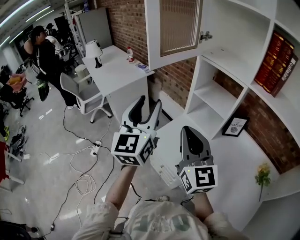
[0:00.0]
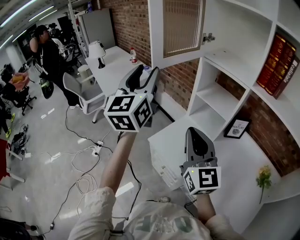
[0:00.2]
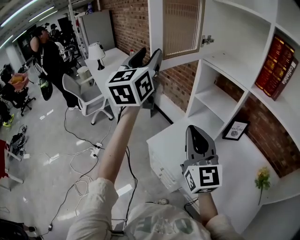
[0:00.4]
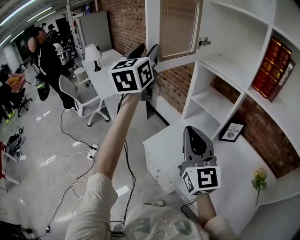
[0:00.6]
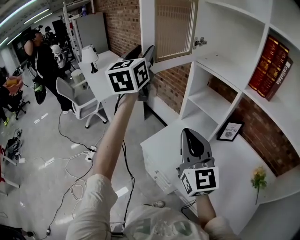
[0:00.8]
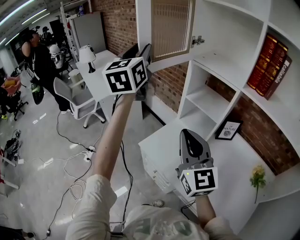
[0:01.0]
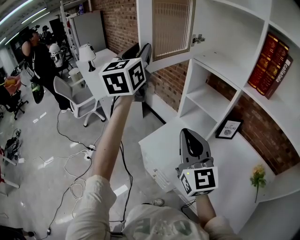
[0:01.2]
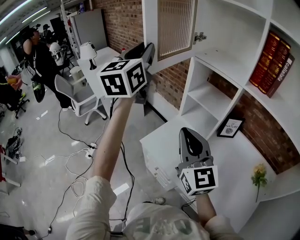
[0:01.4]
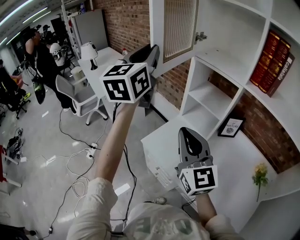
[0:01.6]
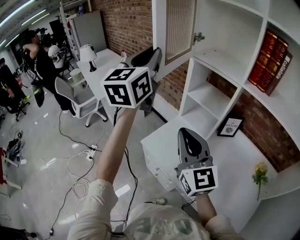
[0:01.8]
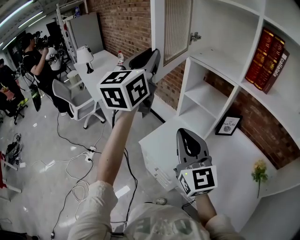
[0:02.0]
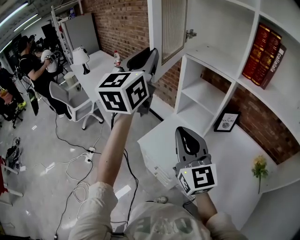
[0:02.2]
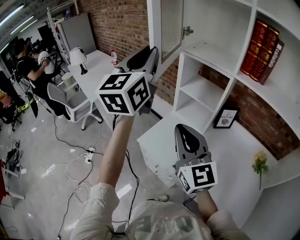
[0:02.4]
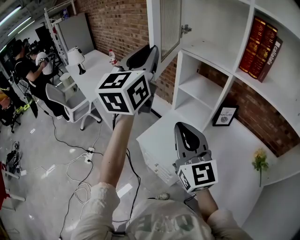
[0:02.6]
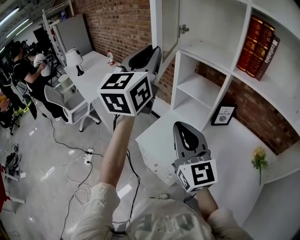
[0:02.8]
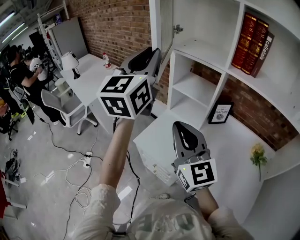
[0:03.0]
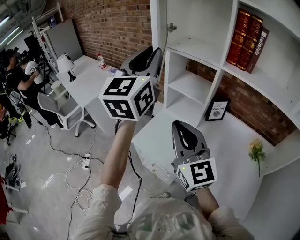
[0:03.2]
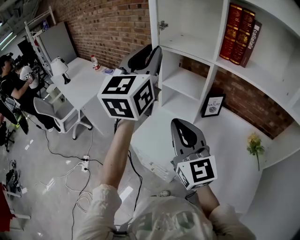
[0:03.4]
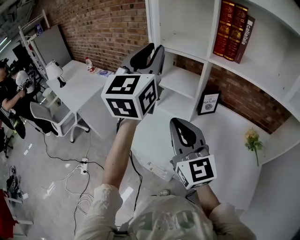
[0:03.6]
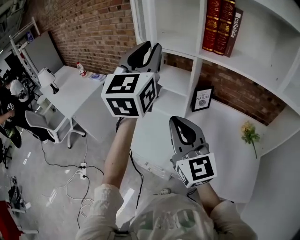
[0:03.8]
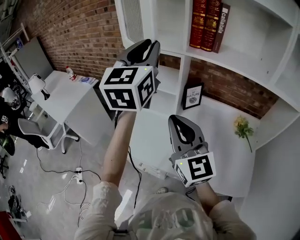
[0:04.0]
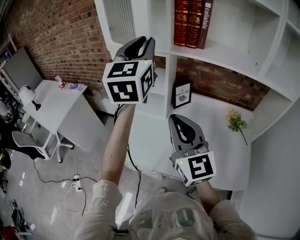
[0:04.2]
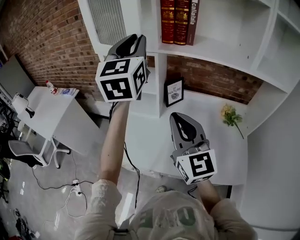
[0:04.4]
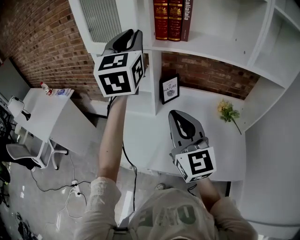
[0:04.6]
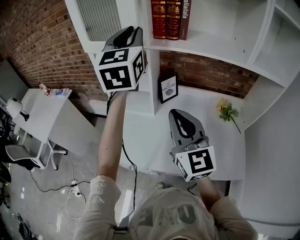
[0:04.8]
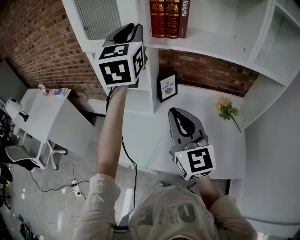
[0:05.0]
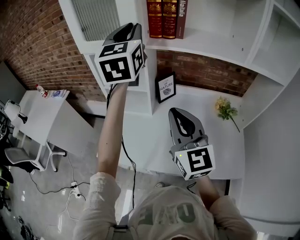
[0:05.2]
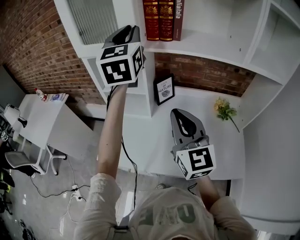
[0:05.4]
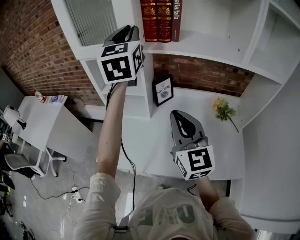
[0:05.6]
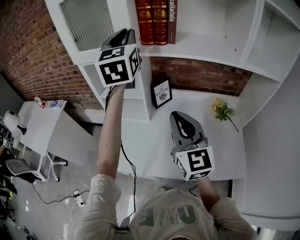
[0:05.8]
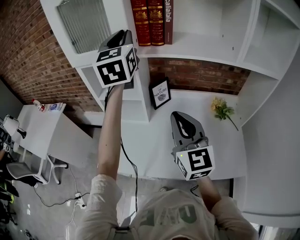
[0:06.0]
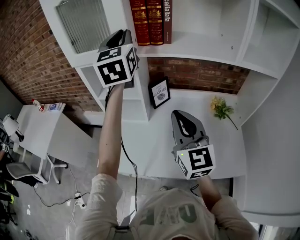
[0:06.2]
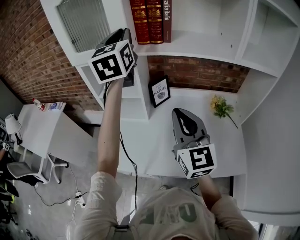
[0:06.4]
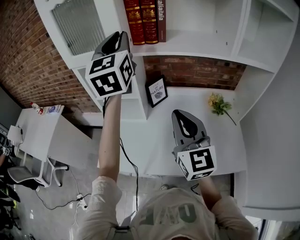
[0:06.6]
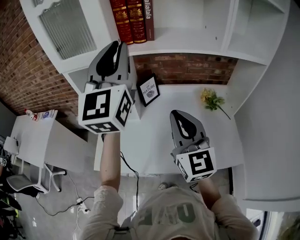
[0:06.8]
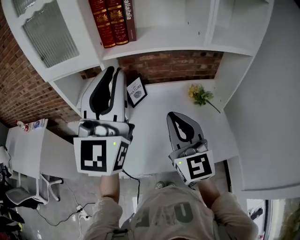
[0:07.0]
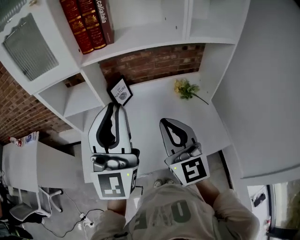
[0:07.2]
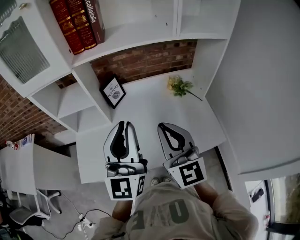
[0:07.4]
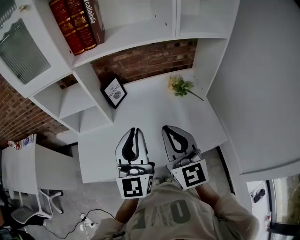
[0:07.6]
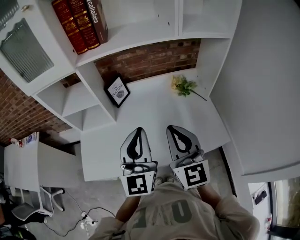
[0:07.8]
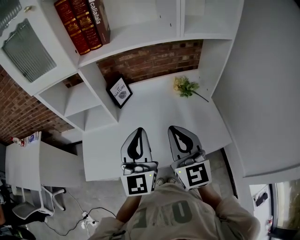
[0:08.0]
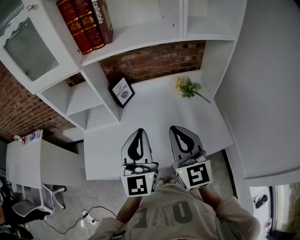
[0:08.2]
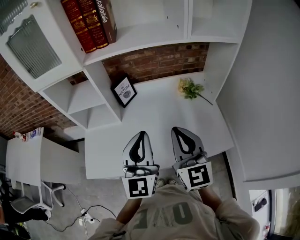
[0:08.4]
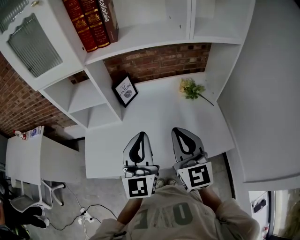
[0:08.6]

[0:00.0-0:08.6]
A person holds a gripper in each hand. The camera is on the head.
0:00.0 to 0:01.4: The left gripper heads upward and forward, covering roughly 20 cm.
0:01.4 to 0:02.8: The left gripper goes some 10 cm to the right and backward.
0:02.8 to 0:04.4: Both grippers move to the right, some 20 cm. The right gripper turns by some 30 degrees.
0:04.4 to 0:05.8: The left gripper travels forward by about 10 cm. The right gripper ends up some 5 cm from where it was.
0:05.8 to 0:07.2: The left gripper heads backward, covering roughly 25 cm, and swivels about 30 degrees. Meanwhile the right gripper travels to the right and backward by some 10 cm.
0:07.2 to 0:08.6: The right gripper travels downward by approximately 5 cm; the left gripper shifts about 15 cm downward.

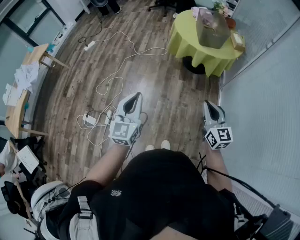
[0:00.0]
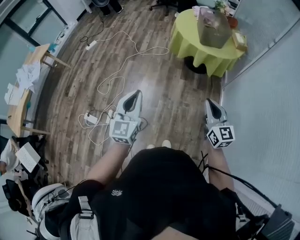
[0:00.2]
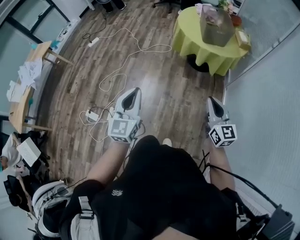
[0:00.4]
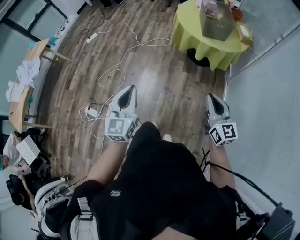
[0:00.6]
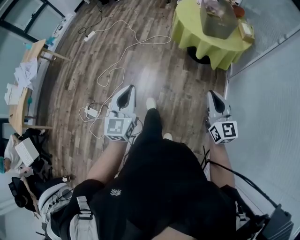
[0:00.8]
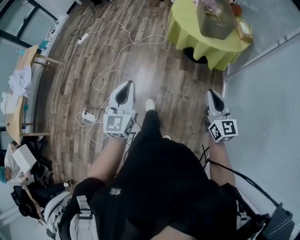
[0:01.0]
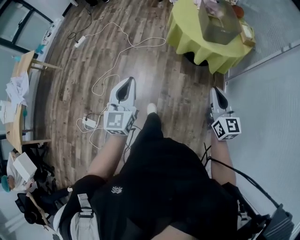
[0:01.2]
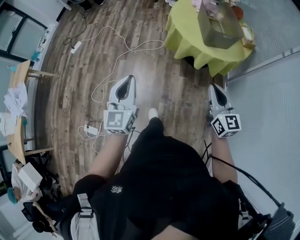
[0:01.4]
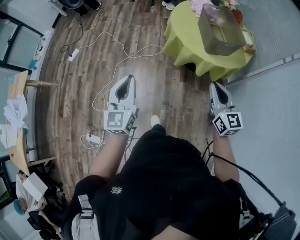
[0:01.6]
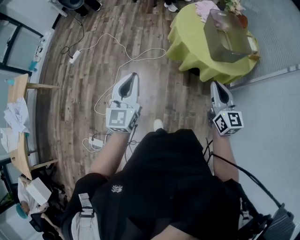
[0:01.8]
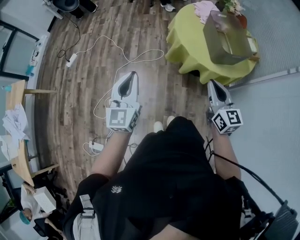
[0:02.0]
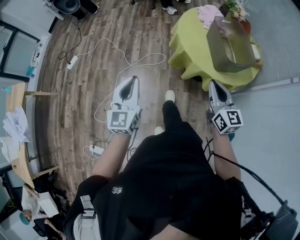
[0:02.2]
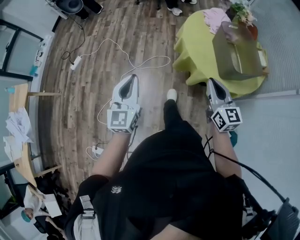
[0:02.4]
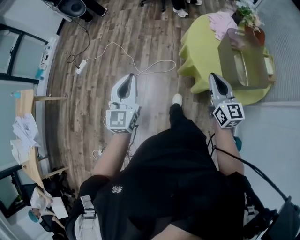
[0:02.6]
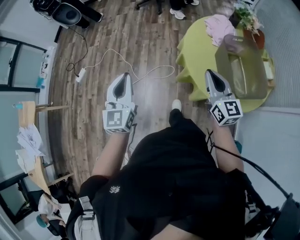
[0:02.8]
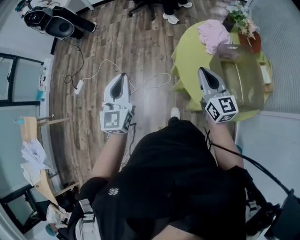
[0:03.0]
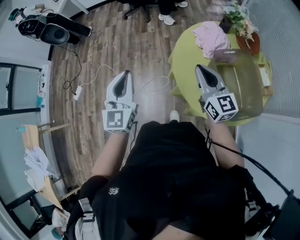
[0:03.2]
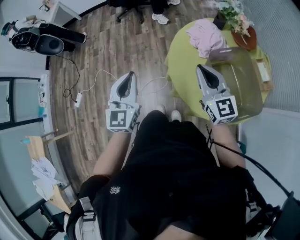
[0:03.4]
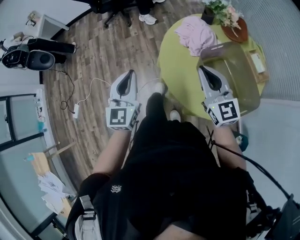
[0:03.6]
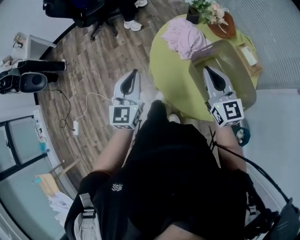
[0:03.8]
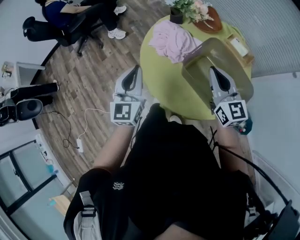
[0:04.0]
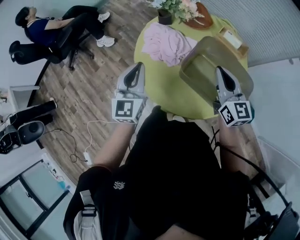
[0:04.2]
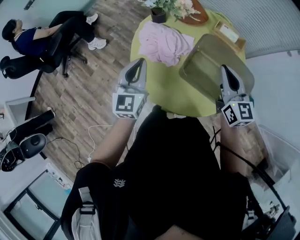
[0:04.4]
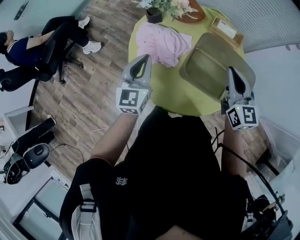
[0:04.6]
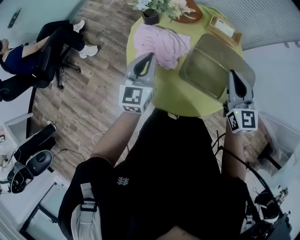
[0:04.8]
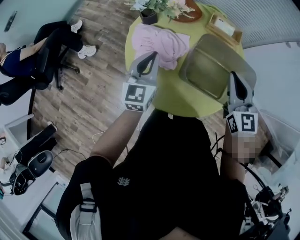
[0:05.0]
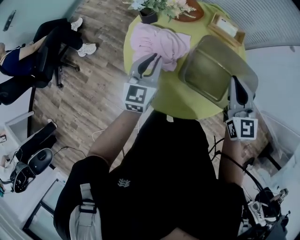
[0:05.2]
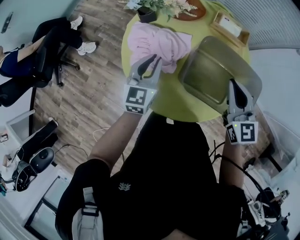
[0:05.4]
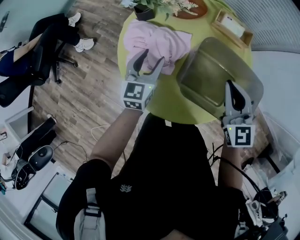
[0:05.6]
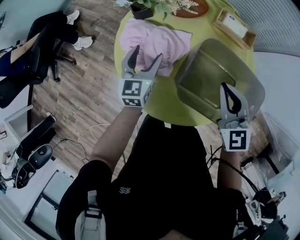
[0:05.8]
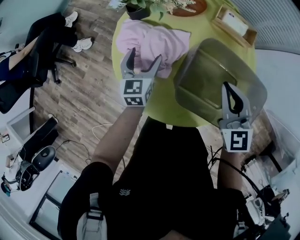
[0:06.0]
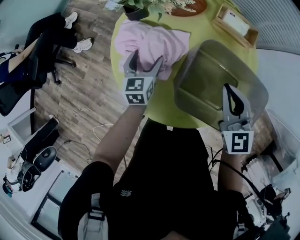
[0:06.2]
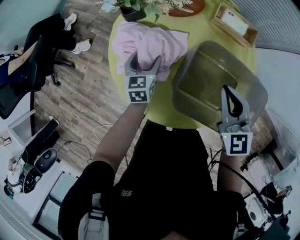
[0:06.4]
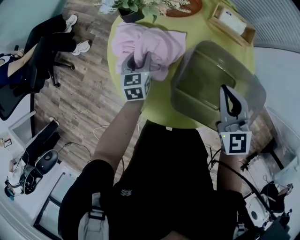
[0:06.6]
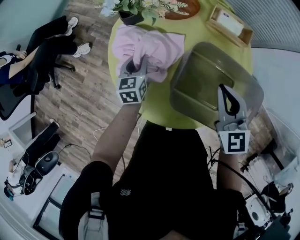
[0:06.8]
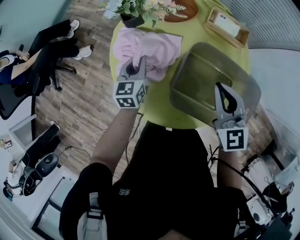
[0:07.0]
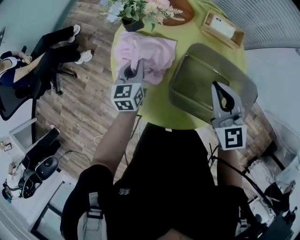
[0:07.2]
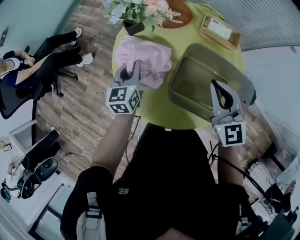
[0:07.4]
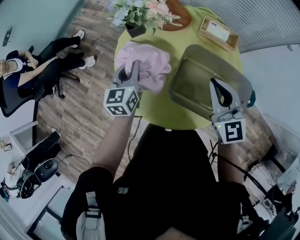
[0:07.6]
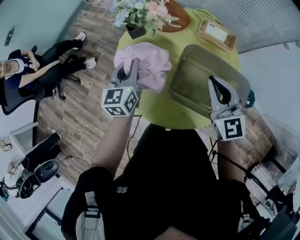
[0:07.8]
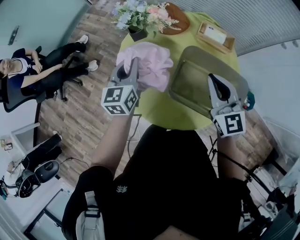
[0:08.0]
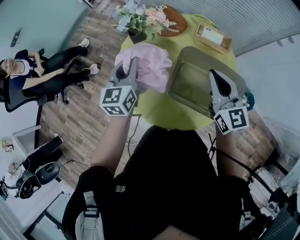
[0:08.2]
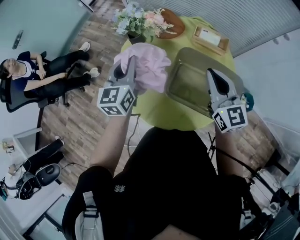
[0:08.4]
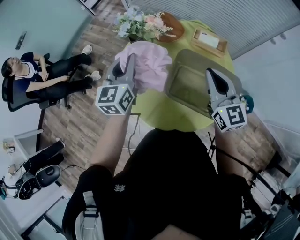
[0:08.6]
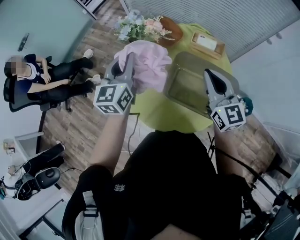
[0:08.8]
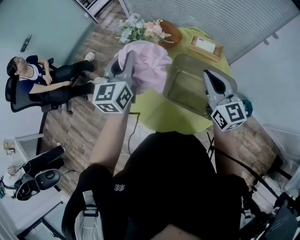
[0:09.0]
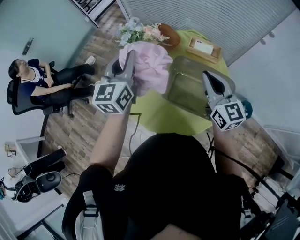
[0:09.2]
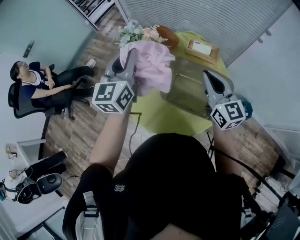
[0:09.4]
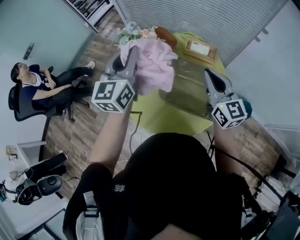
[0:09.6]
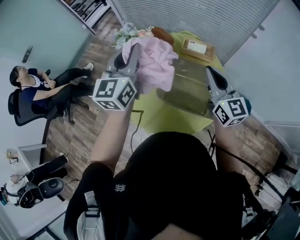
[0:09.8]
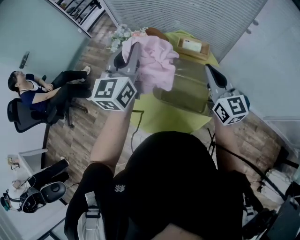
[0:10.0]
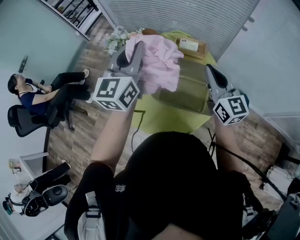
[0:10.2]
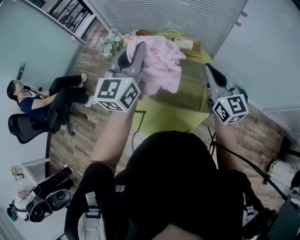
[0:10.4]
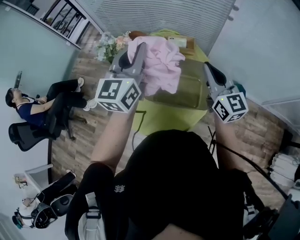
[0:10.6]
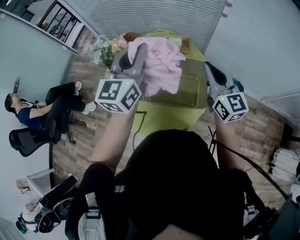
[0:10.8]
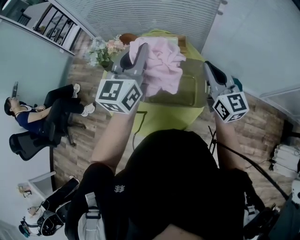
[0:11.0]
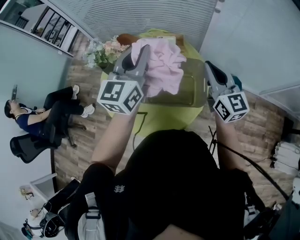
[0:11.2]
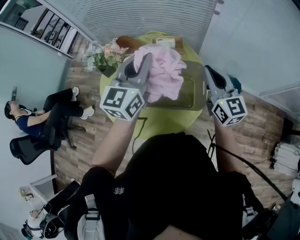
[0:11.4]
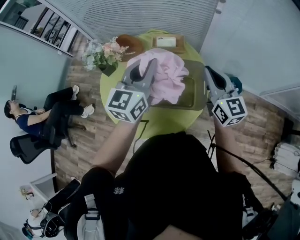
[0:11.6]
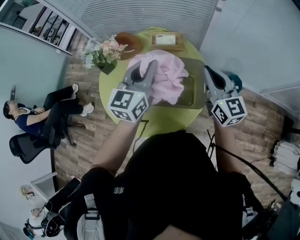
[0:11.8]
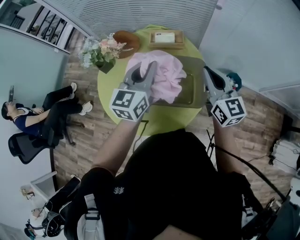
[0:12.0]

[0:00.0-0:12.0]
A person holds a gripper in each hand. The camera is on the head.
0:00.0 to 0:01.6: The grippers both shift forward by approximately 40 cm.
0:01.6 to 0:03.0: Both grippers are carried forward, roughly 50 cm.
0:03.0 to 0:04.4: The right gripper changes place by approximately 30 cm, and swivels some 50 degrees. Meanwhile the left gripper changes place by about 50 cm, and turns by approximately 60 degrees.
0:04.4 to 0:06.0: The right gripper shifts about 10 cm downward and forward; the left gripper heads downward and forward, covering approximately 25 cm, changes its angle by approximately 20 degrees, and opens its fingers.
0:06.0 to 0:07.6: The left gripper goes approximately 10 cm upward, and closes; the right gripper moves upward, approximately 5 cm.
0:07.6 to 0:09.0: The left gripper shifts some 20 cm upward. The right gripper travels upward by roughly 10 cm.
0:09.0 to 0:10.4: The left gripper heads to the right and upward, covering about 15 cm; the right gripper travels to the right by roughly 10 cm.
0:10.4 to 0:12.0: The left gripper shifts some 20 cm to the right and downward. Meanwhile the right gripper travels to the right and downward by some 10 cm.

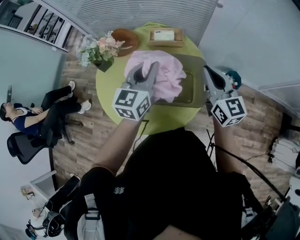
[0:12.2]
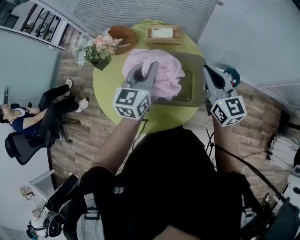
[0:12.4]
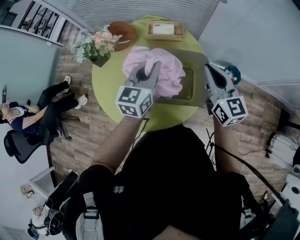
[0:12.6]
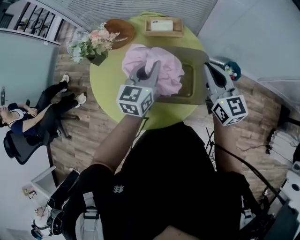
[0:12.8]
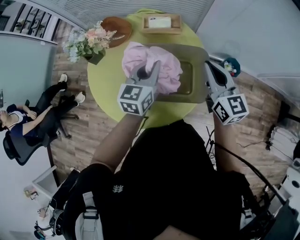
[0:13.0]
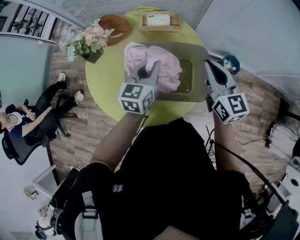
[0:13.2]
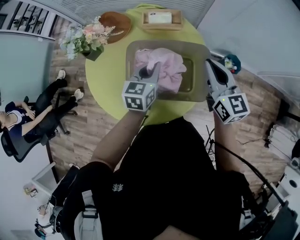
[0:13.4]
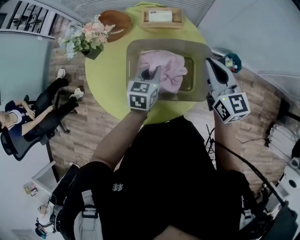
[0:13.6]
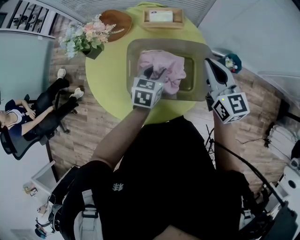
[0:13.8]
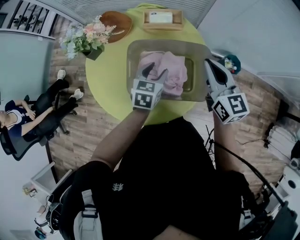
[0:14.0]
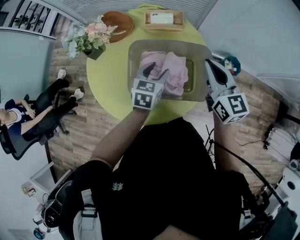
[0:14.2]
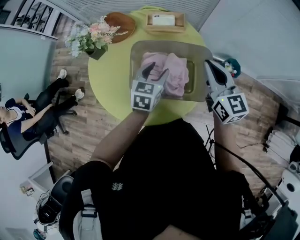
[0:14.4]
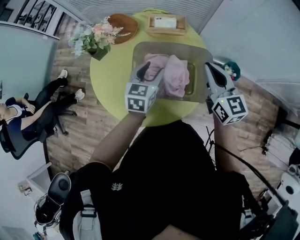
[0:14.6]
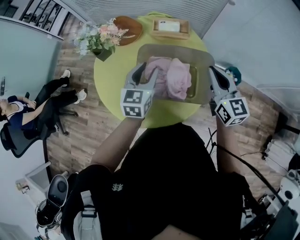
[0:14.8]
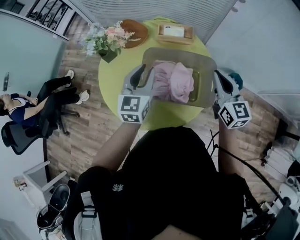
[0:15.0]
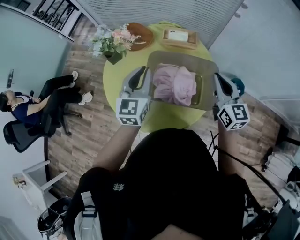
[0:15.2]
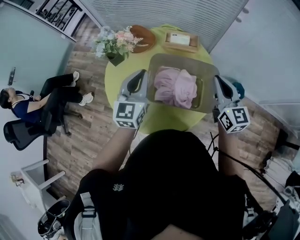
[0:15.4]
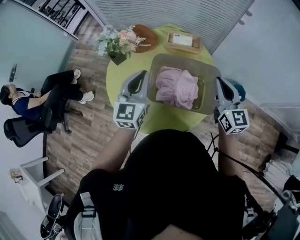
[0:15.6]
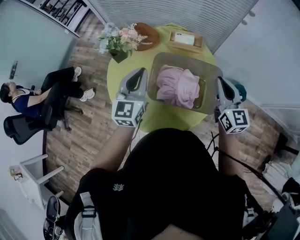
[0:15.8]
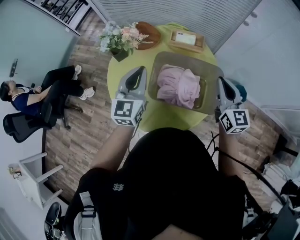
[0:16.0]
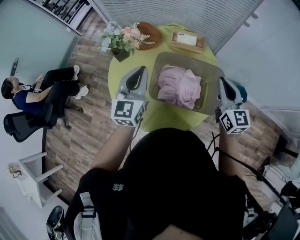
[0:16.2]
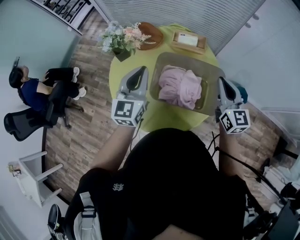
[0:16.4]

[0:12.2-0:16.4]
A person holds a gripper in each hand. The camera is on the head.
0:12.2 to 0:13.6: The left gripper heads downward, covering approximately 20 cm, and swivels roughly 30 degrees.
0:13.6 to 0:15.0: The left gripper travels upward and to the left by roughly 15 cm, and swivels roughly 30 degrees.
0:15.0 to 0:16.4: The left gripper is displaced to the left by some 5 cm.
